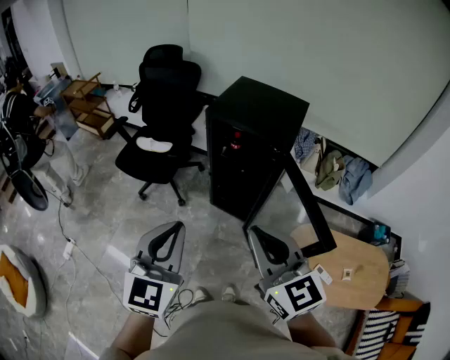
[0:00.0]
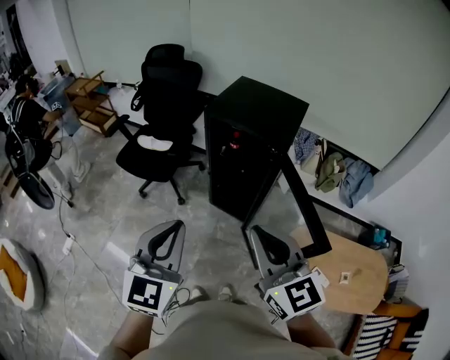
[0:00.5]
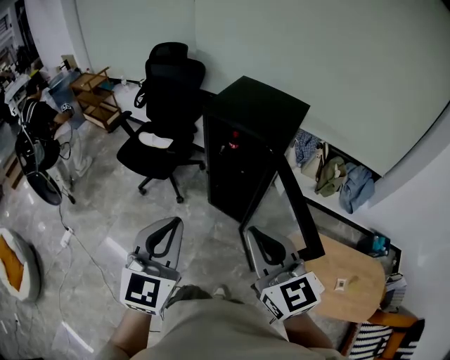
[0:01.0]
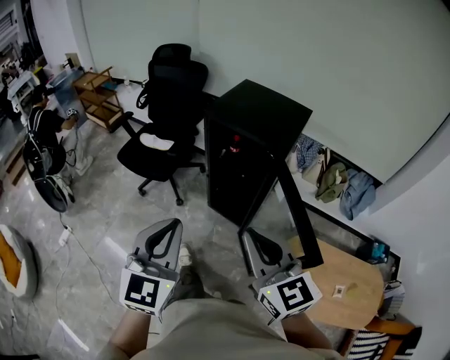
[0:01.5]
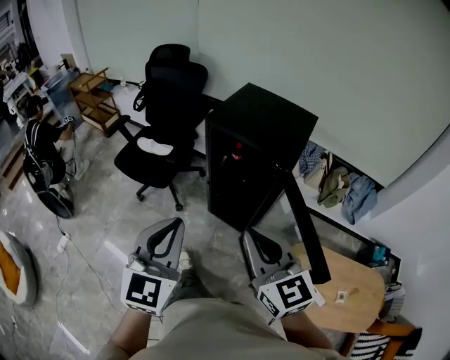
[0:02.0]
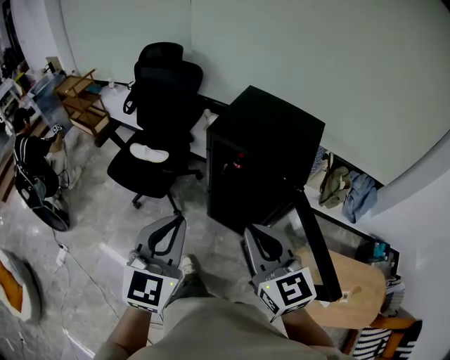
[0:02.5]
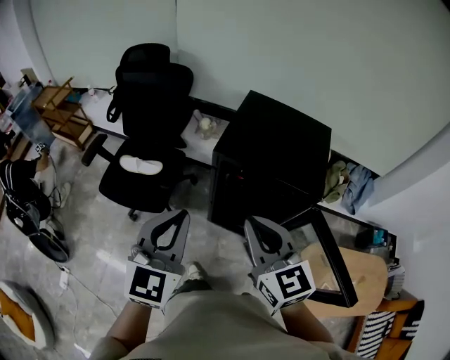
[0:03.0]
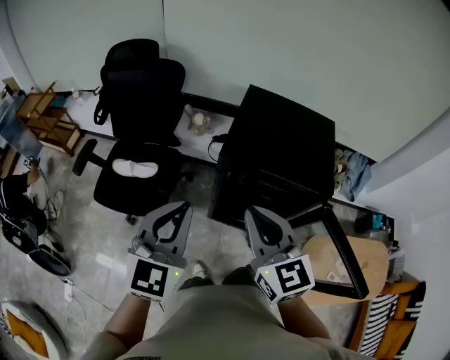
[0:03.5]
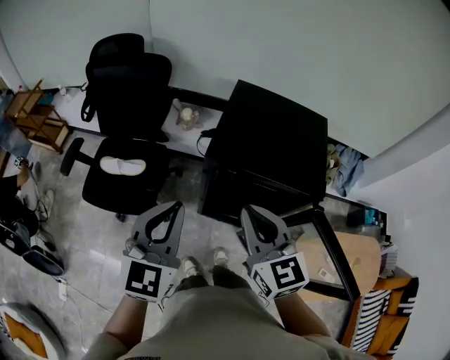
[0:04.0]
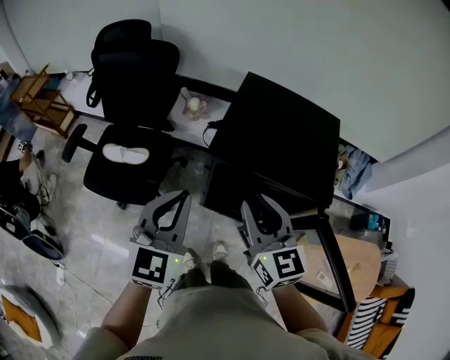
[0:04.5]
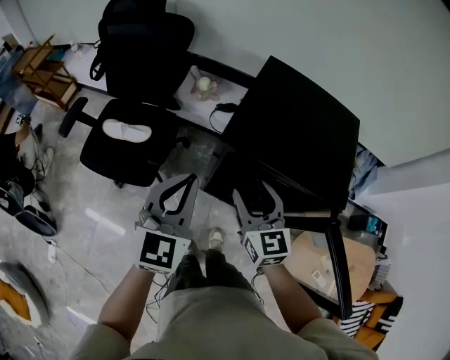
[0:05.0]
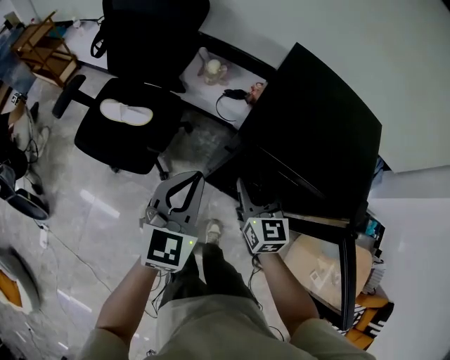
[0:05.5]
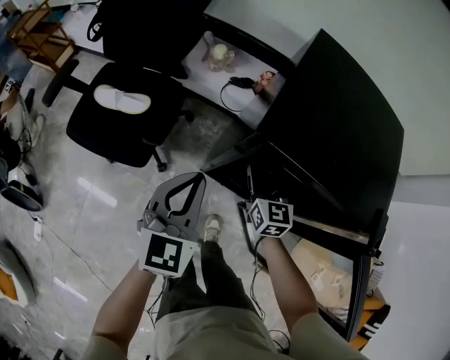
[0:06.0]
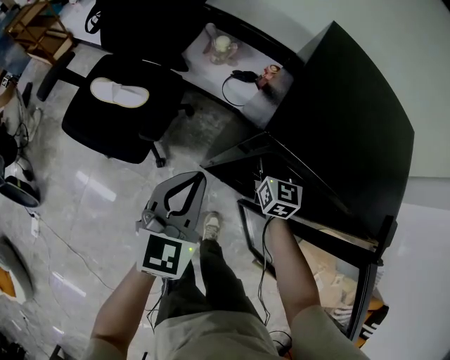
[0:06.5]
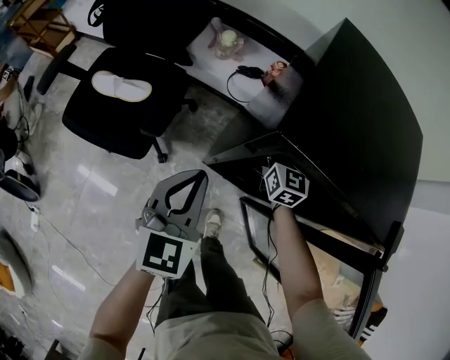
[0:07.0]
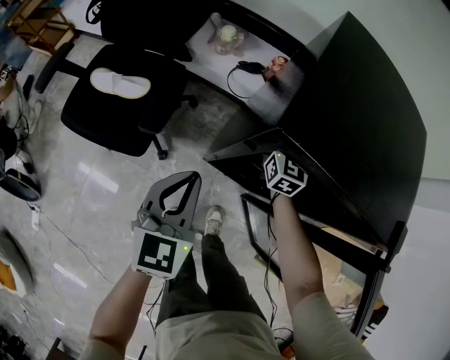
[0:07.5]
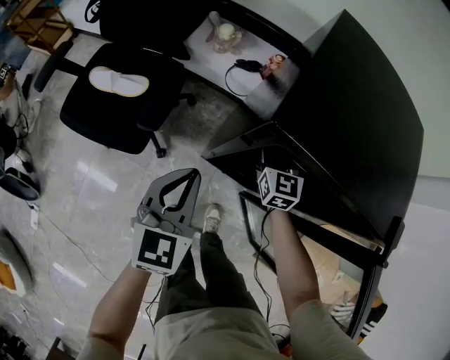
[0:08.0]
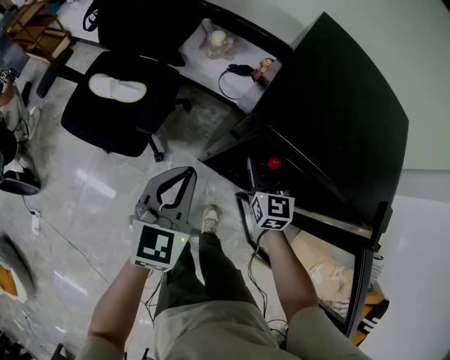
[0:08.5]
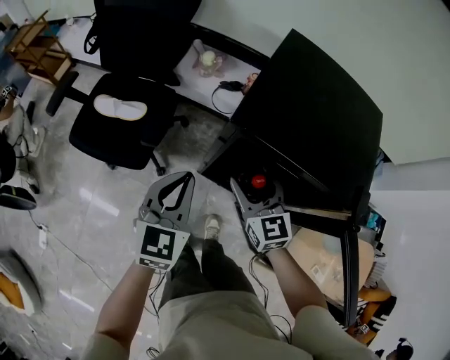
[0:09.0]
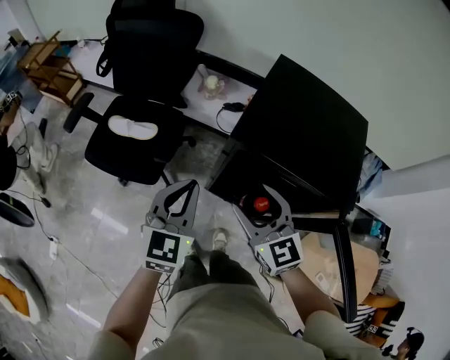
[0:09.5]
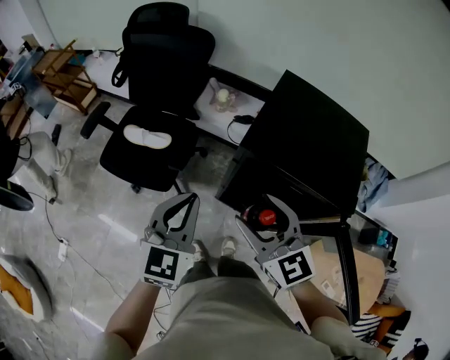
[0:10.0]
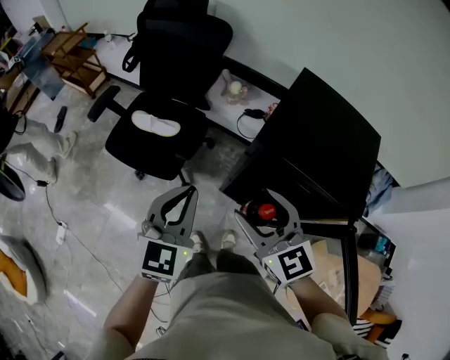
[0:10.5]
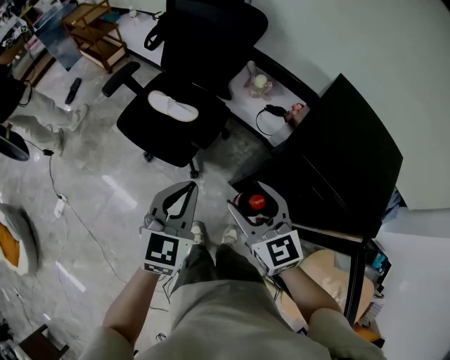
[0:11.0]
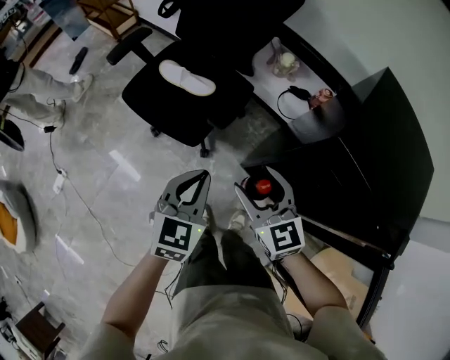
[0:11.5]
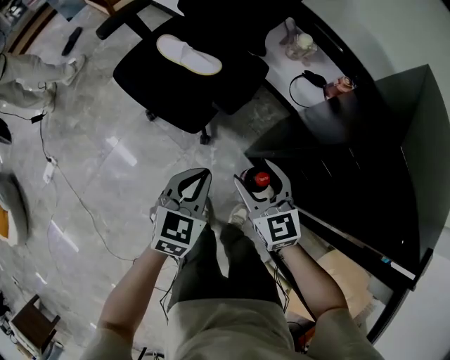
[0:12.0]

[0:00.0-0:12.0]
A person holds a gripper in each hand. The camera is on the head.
0:00.0 to 0:02.0: The two grippers go approximately 5 cm forward.
0:02.0 to 0:04.0: The right gripper shifts approximately 30 cm forward and to the left, and turns by about 20 degrees; the left gripper moves forward, about 30 cm.
0:04.0 to 0:06.0: The right gripper travels downward and forward by roughly 35 cm, and opens its fingers; the left gripper goes roughly 20 cm downward.
0:06.0 to 0:08.0: The right gripper moves forward, some 5 cm. The left gripper heads downward, covering roughly 5 cm.
0:08.0 to 0:10.0: The right gripper goes roughly 35 cm upward and backward, and changes its angle by approximately 30 degrees; the left gripper heads upward, covering about 20 cm.
0:10.0 to 0:12.0: The two grippers go approximately 30 cm downward. The left gripper rotates roughly 20 degrees.

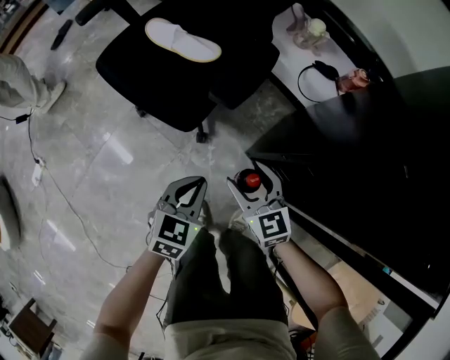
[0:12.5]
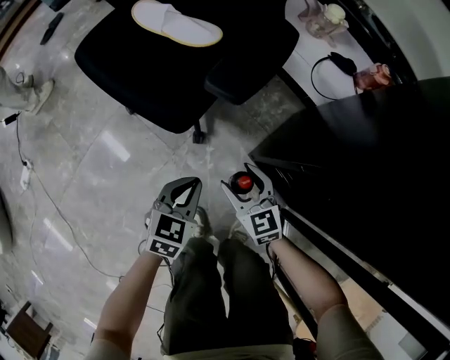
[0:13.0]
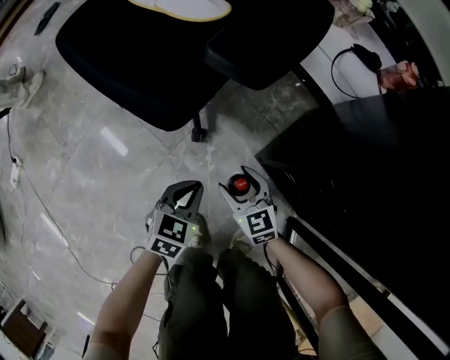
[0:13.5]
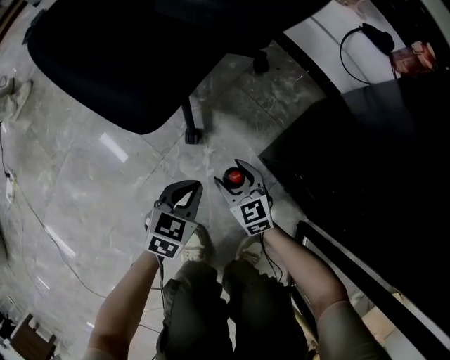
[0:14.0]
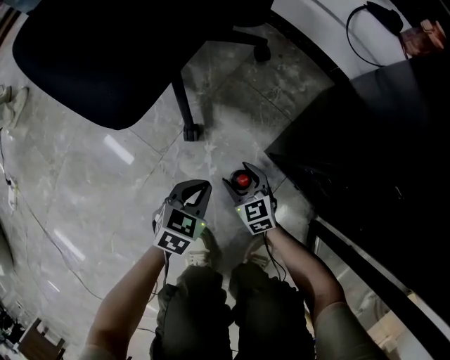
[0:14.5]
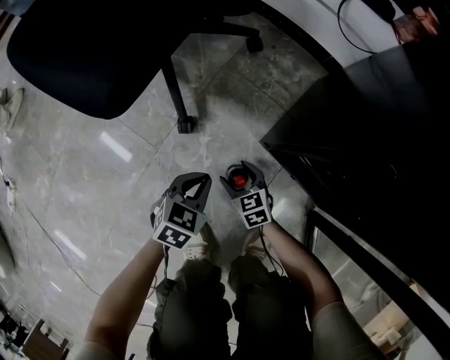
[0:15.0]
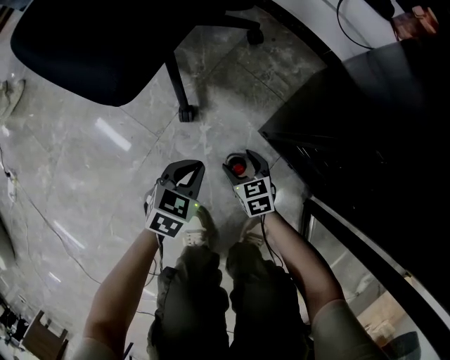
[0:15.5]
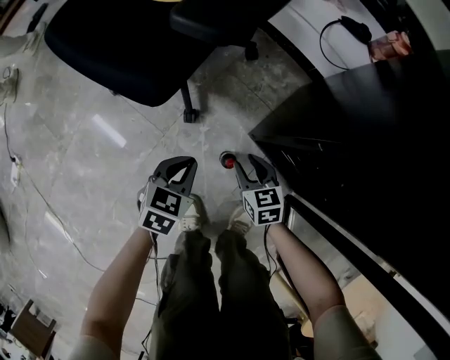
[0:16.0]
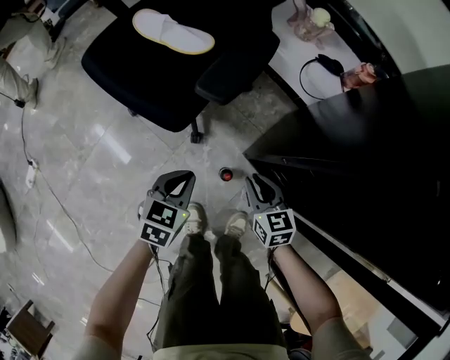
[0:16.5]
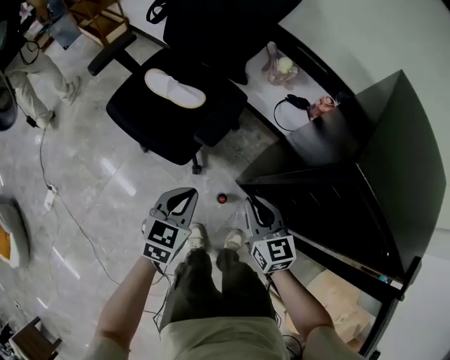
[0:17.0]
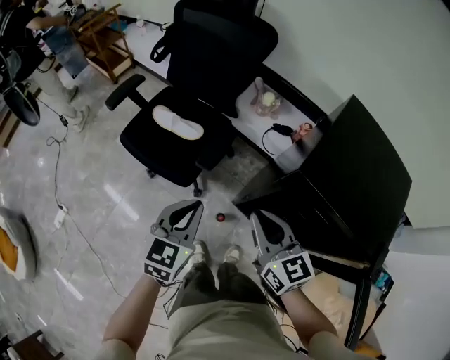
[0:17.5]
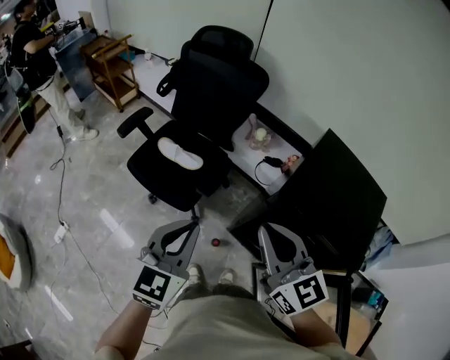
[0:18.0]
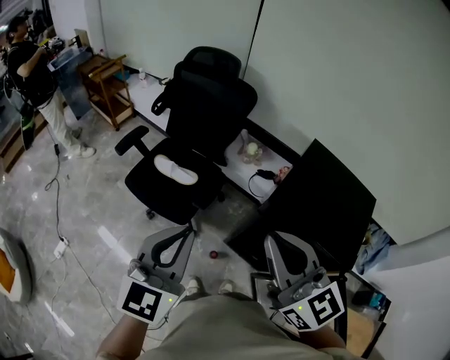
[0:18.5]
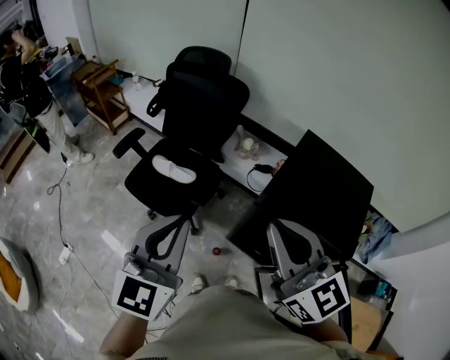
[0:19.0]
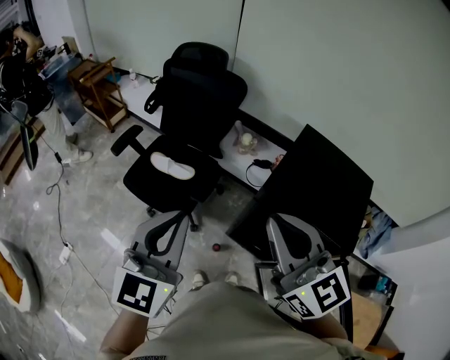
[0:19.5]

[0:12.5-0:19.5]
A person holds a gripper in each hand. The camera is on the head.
0:12.5 to 0:14.5: Both grippers travel together downward, roughly 50 cm.
0:14.5 to 0:16.0: The grippers both shift upward by about 20 cm. The right gripper closes up.
0:16.0 to 0:17.5: The grippers both shift upward by about 70 cm. The right gripper turns by some 30 degrees, and closes up; the left gripper swivels roughly 20 degrees.
0:17.5 to 0:19.5: The grippers both shift upward by approximately 30 cm. The right gripper changes its angle by approximately 20 degrees, while the left gripper swivels approximately 20 degrees.

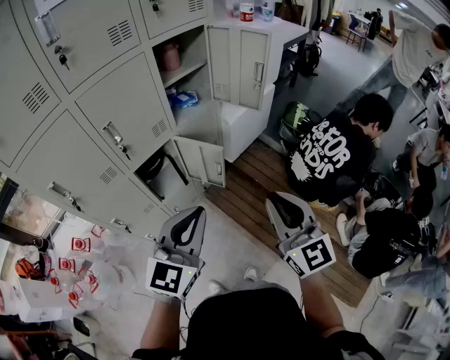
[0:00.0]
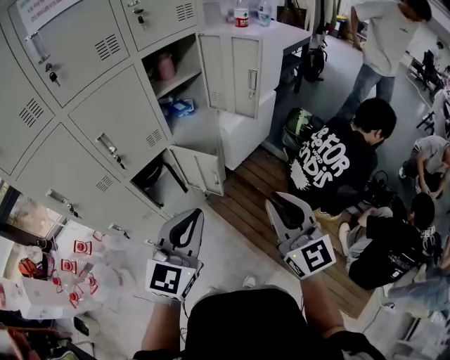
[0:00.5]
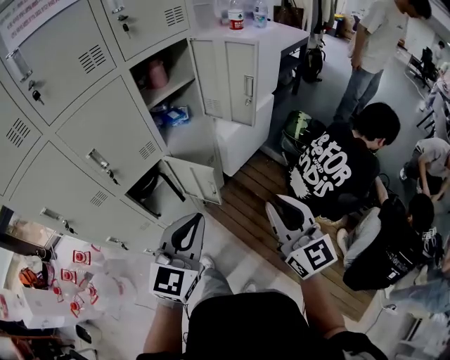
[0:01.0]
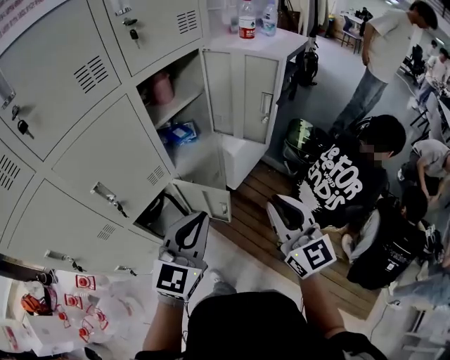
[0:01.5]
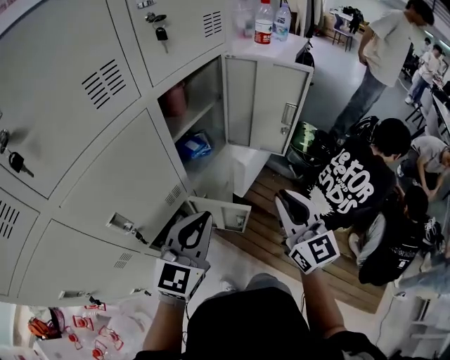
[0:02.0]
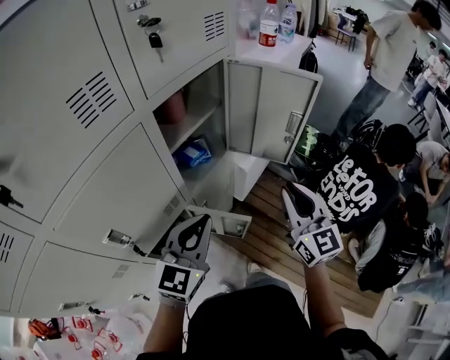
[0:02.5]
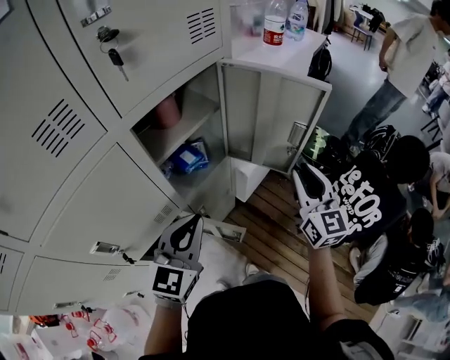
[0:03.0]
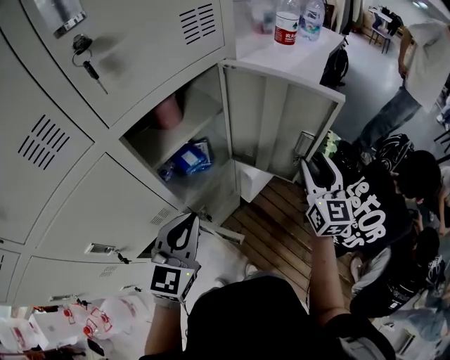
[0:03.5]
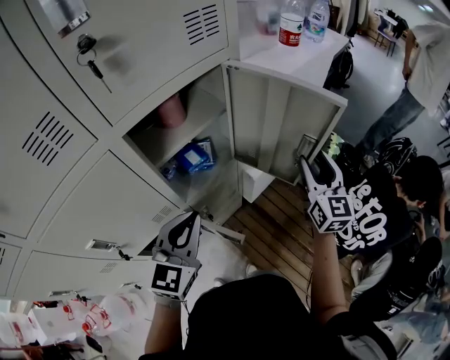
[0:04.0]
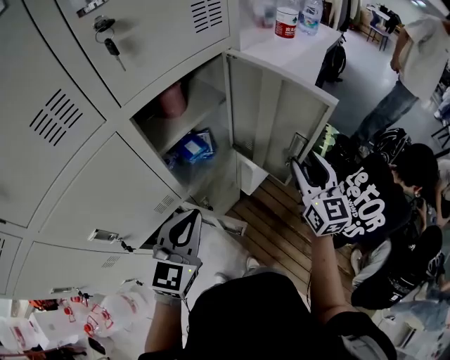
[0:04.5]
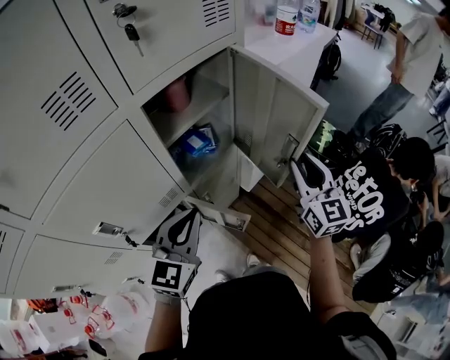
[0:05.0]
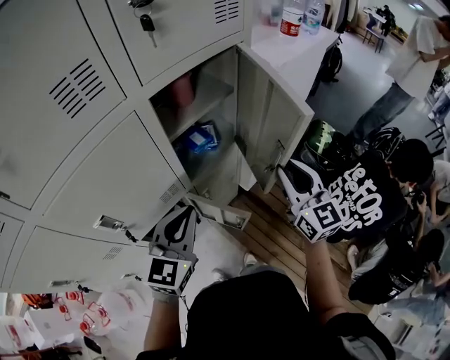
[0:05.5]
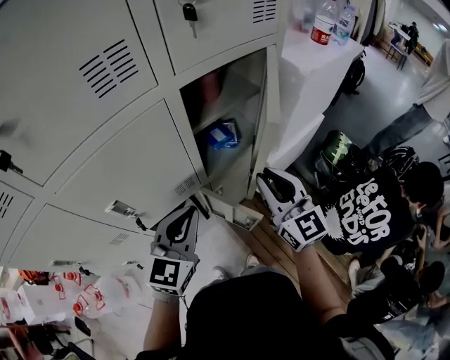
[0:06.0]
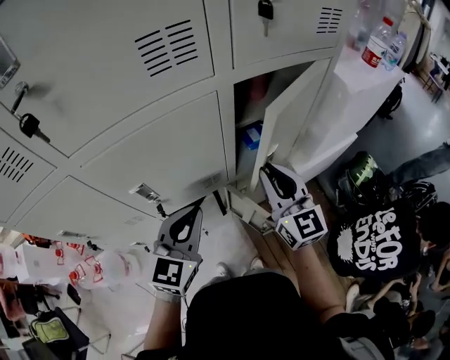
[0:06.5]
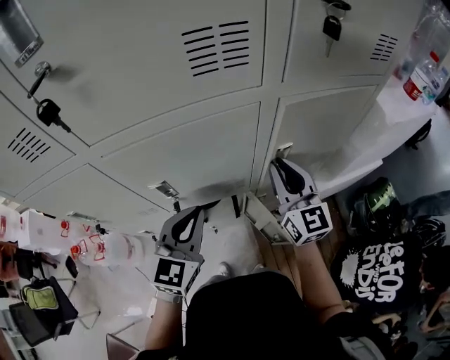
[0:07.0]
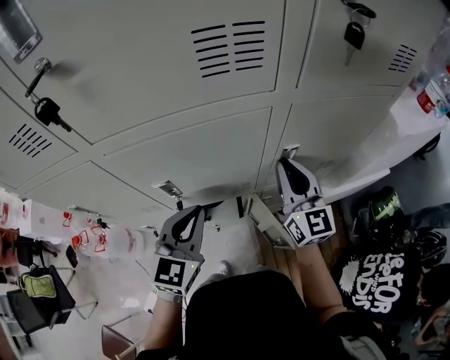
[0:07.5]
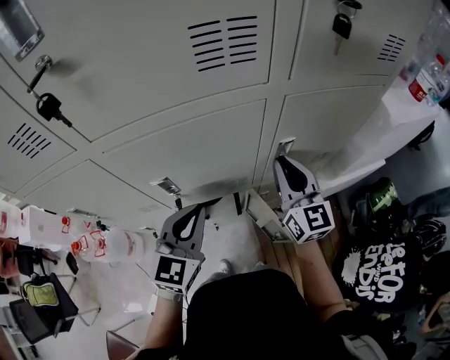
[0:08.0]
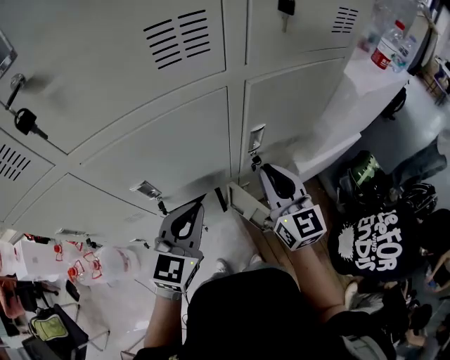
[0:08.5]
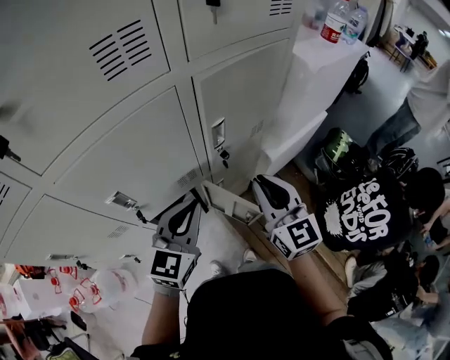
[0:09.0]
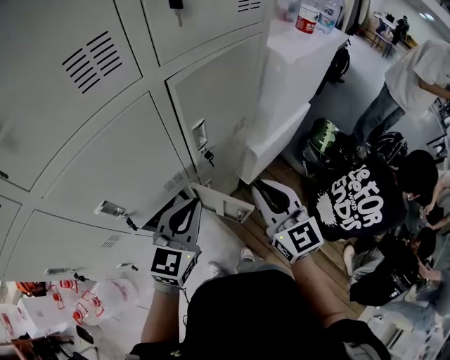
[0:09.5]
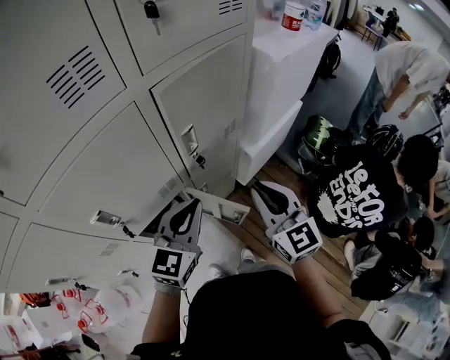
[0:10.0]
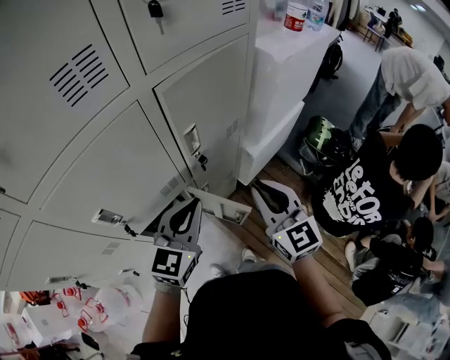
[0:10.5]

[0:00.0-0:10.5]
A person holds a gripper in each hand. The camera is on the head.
0:00.0 to 0:02.0: The two grippers go some 25 cm forward.
0:02.0 to 0:04.0: The left gripper goes about 10 cm forward. The right gripper heads forward and to the right, covering approximately 30 cm, and opens its fingers.
0:04.0 to 0:06.5: The left gripper moves about 15 cm, while the right gripper shifts by roughly 30 cm, turns by about 30 degrees, and closes up.
0:06.5 to 0:08.5: The right gripper travels forward and back again, roughly 10 cm each way.
0:08.5 to 0:10.5: The left gripper shifts approximately 10 cm to the right, and turns by approximately 20 degrees, while the right gripper heads to the right and backward, covering approximately 15 cm.
